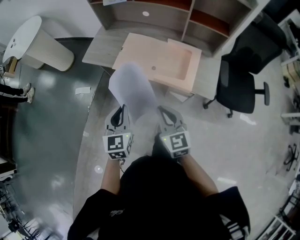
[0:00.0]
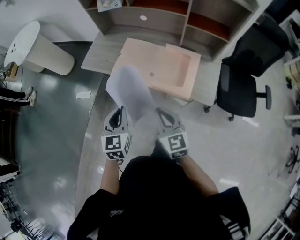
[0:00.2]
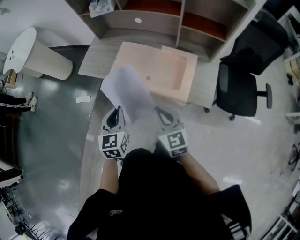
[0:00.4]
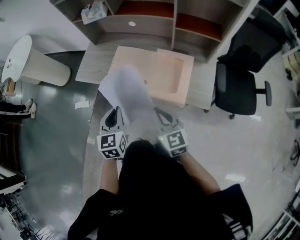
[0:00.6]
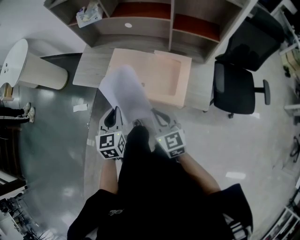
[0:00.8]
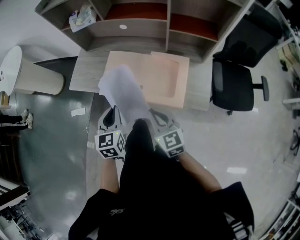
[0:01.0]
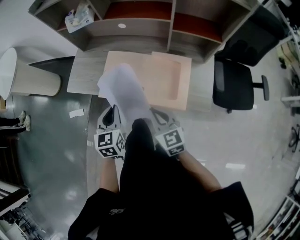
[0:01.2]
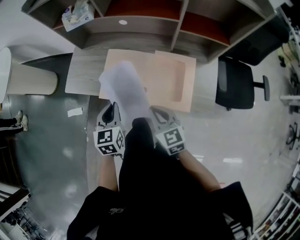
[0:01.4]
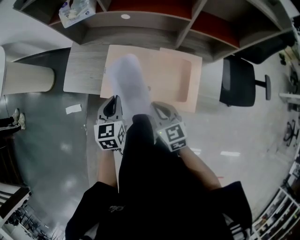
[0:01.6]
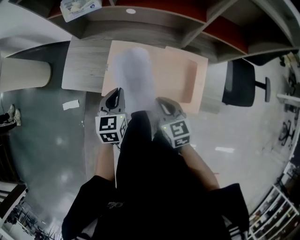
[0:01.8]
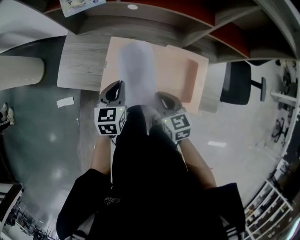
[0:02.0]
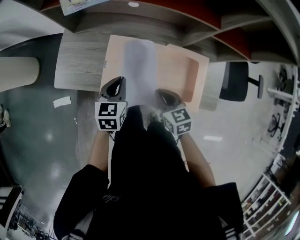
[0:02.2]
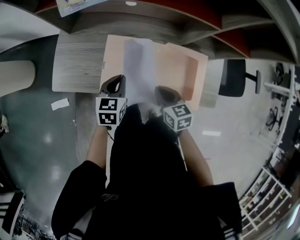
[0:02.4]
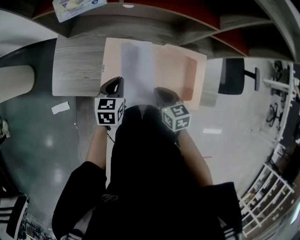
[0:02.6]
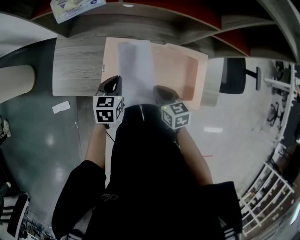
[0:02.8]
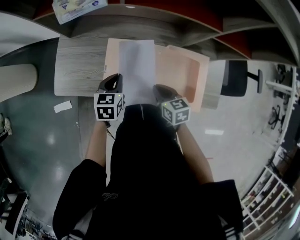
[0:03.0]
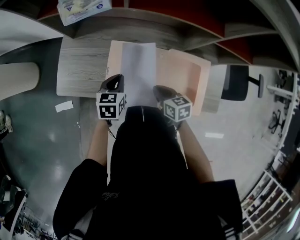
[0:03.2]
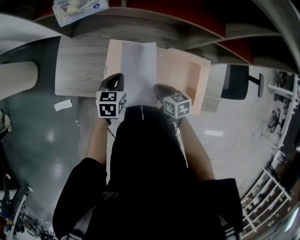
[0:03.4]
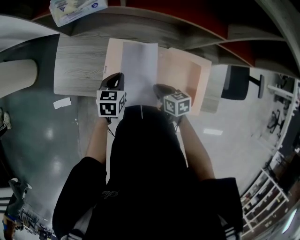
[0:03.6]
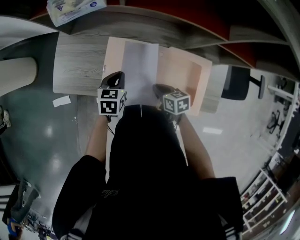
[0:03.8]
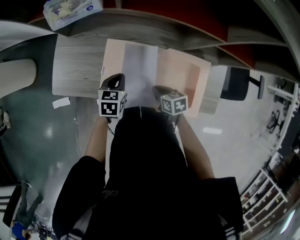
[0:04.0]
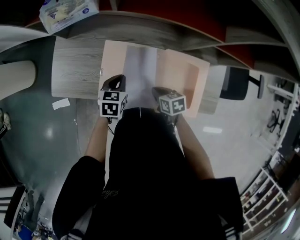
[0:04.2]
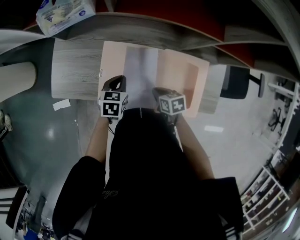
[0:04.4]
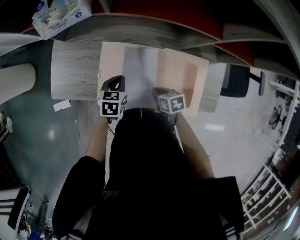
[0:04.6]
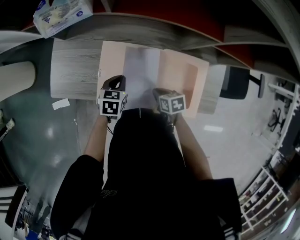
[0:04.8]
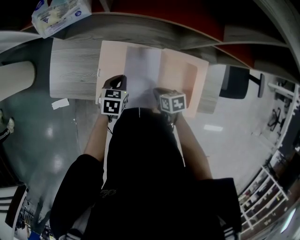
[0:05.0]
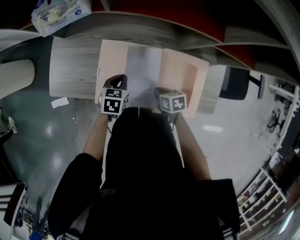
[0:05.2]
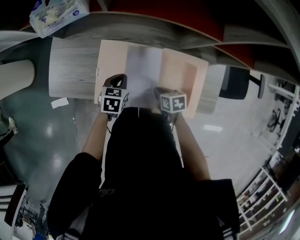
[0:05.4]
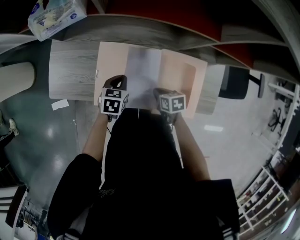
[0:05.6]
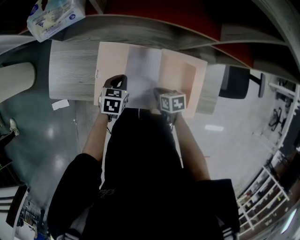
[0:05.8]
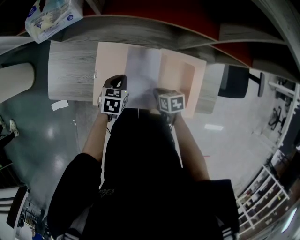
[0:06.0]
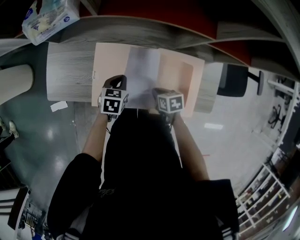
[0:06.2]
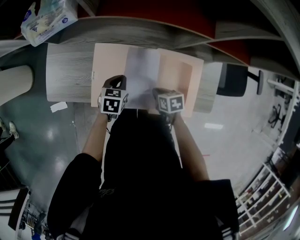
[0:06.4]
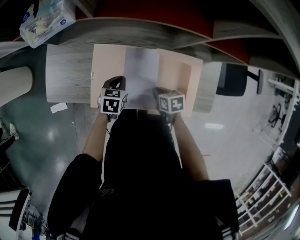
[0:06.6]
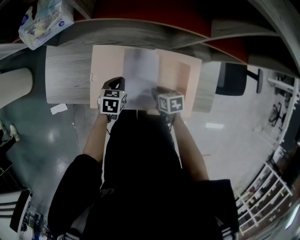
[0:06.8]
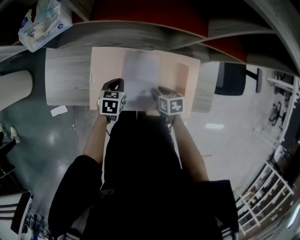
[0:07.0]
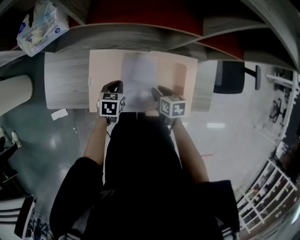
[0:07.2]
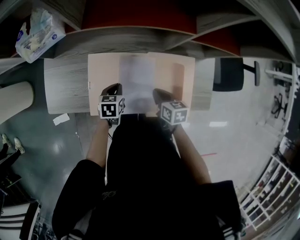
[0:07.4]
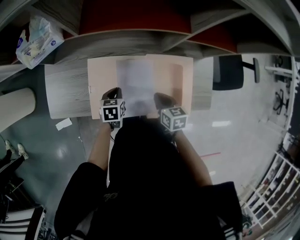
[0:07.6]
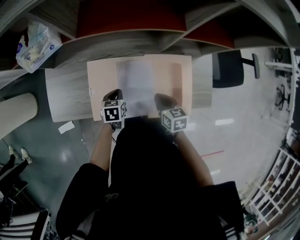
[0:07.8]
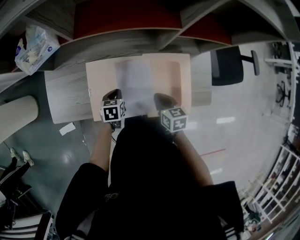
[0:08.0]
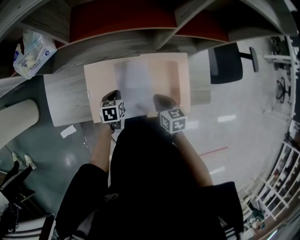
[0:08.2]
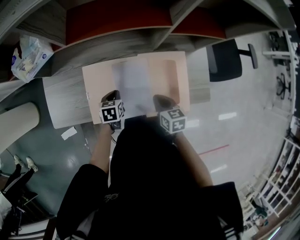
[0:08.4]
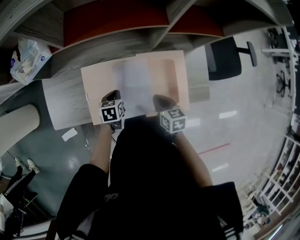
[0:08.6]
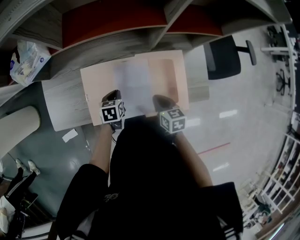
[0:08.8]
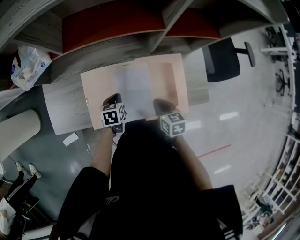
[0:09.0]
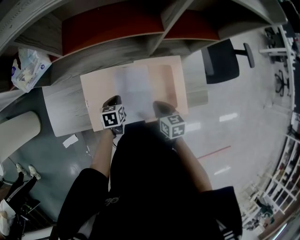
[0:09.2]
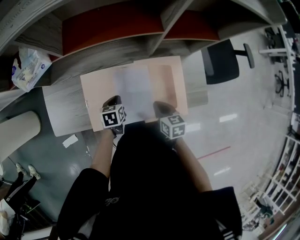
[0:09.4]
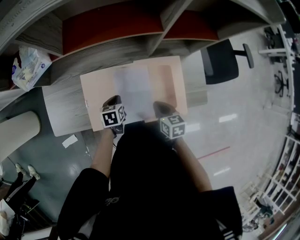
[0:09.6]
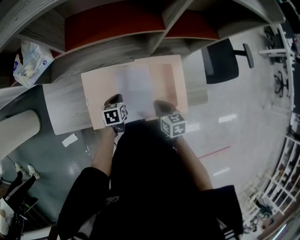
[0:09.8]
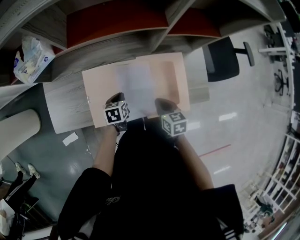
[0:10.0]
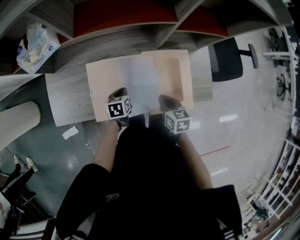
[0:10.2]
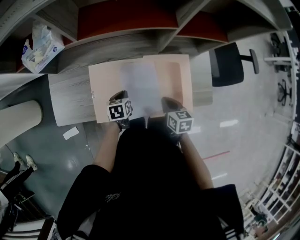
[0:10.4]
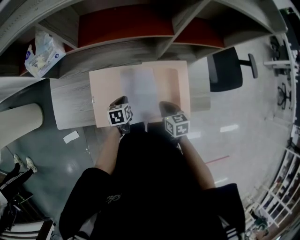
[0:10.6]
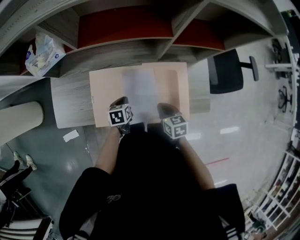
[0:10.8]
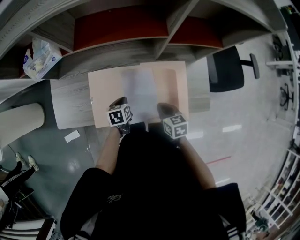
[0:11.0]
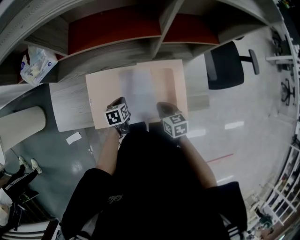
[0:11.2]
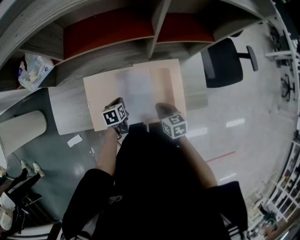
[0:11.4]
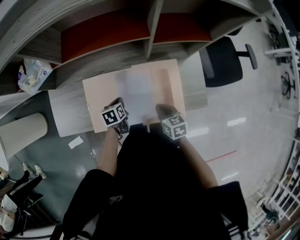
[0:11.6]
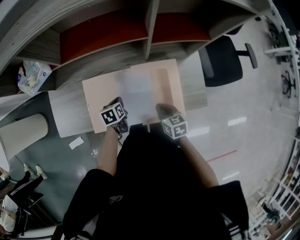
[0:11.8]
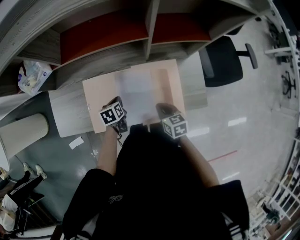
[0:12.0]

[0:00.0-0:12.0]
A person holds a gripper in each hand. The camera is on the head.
0:00.0 to 0:01.6: The grippers both shift forward by approximately 25 cm.
0:01.6 to 0:03.0: The right gripper shifts approximately 15 cm downward and forward, and swivels roughly 20 degrees; the left gripper shifts roughly 15 cm forward and downward.
0:03.0 to 0:04.4: The left gripper shifts by approximately 5 cm. Meanwhile the right gripper is displaced downward by about 10 cm.
0:04.4 to 0:06.0: The grippers make only small movements.
0:06.0 to 0:07.6: The right gripper is displaced upward by some 5 cm, turns by approximately 20 degrees, and opens and closes again.
0:07.6 to 0:10.4: The grippers make only small movements.
0:10.4 to 0:12.0: The grippers make only small movements.

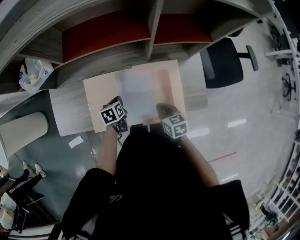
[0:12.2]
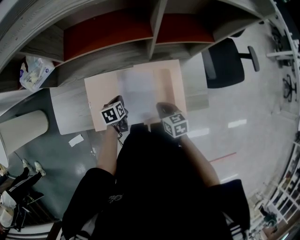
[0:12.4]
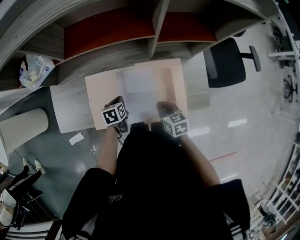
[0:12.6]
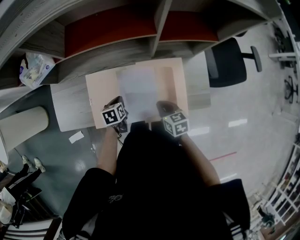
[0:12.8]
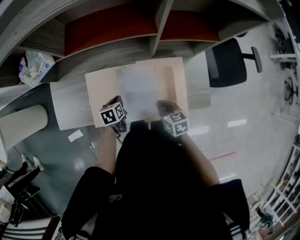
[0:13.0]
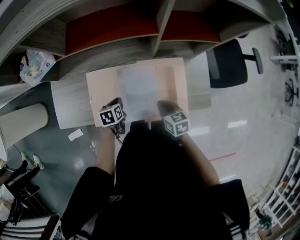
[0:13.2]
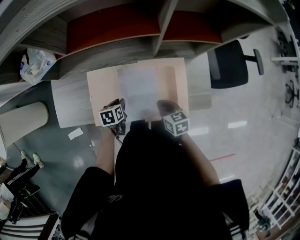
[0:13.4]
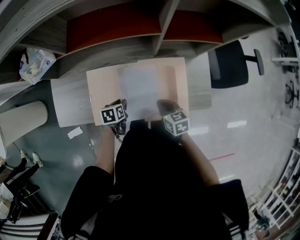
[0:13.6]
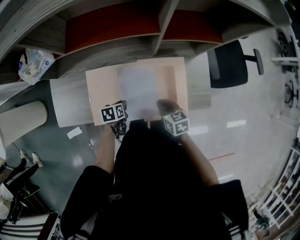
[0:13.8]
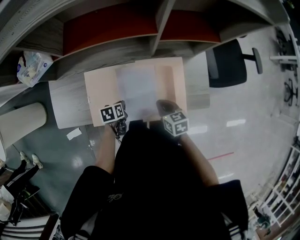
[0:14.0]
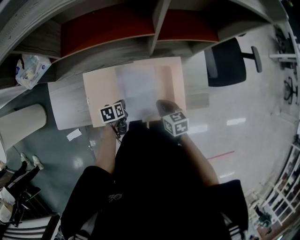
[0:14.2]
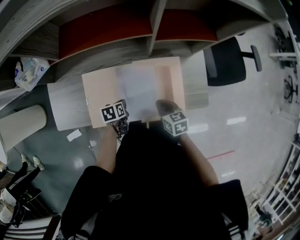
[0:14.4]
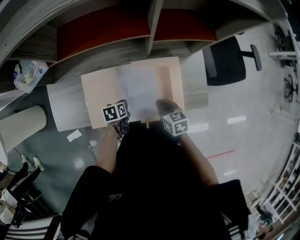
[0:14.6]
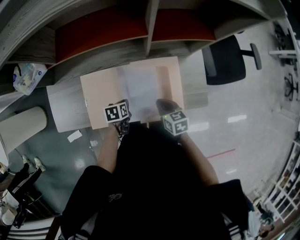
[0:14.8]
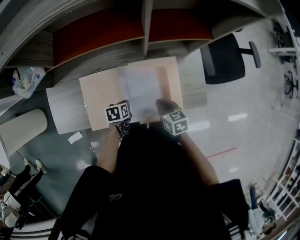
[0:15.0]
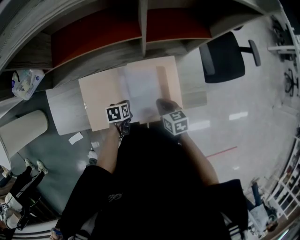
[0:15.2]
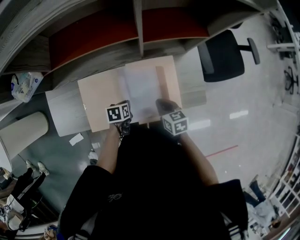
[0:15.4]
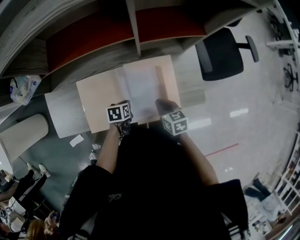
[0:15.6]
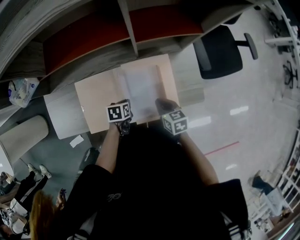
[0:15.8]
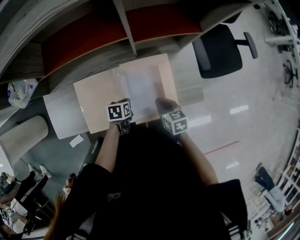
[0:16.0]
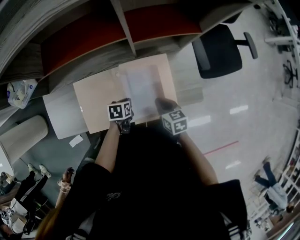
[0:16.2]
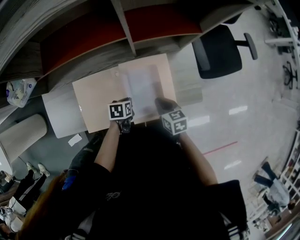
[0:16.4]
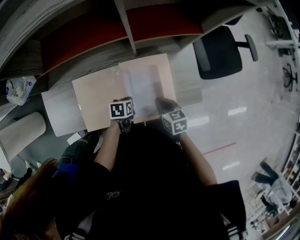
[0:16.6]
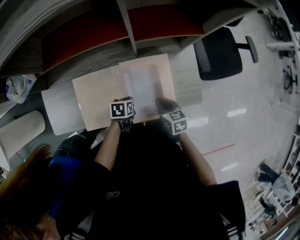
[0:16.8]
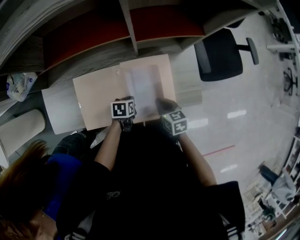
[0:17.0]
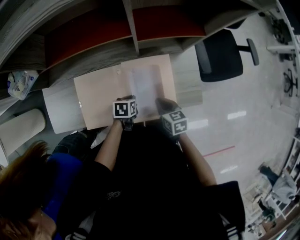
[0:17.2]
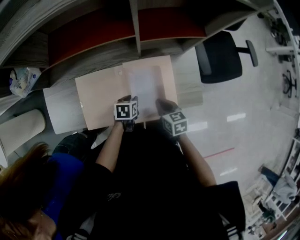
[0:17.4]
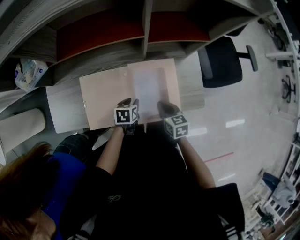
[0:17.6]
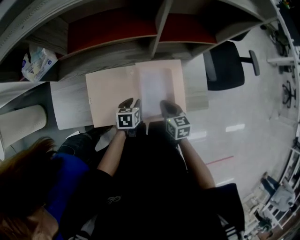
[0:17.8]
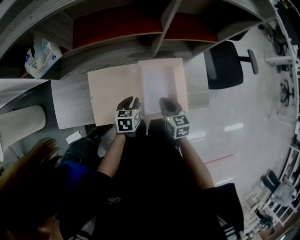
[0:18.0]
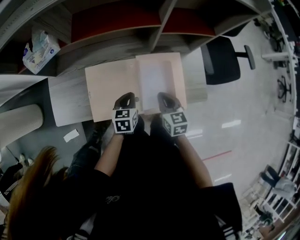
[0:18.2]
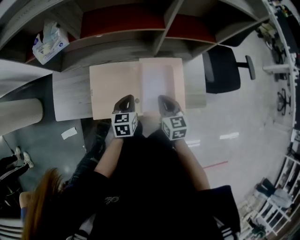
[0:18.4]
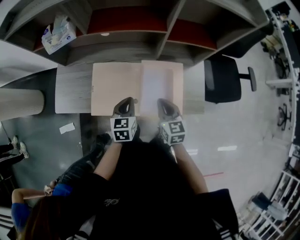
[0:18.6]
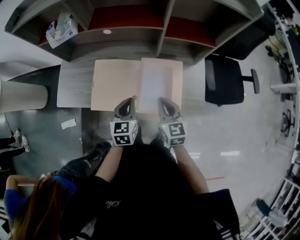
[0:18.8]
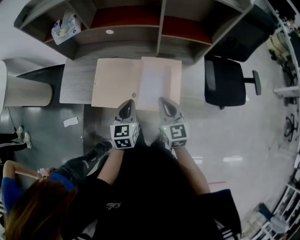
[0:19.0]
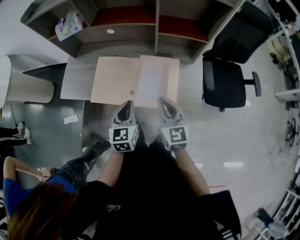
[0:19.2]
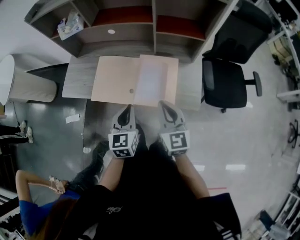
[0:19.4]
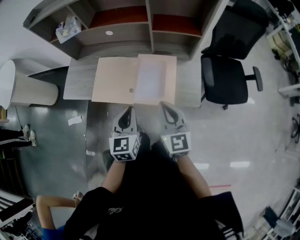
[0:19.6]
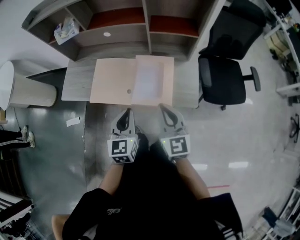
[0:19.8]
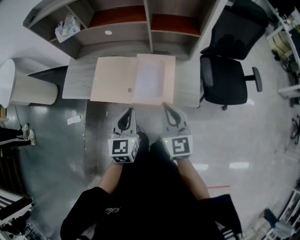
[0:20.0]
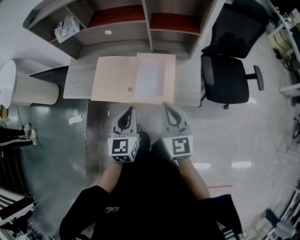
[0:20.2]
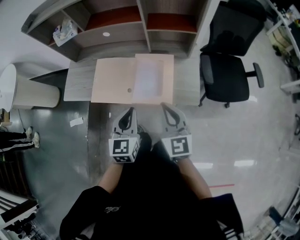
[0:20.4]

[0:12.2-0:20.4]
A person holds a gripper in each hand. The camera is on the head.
0:12.2 to 0:13.8: The left gripper shifts approximately 5 cm backward.
0:13.8 to 0:15.4: The left gripper goes approximately 5 cm to the right.
0:15.4 to 0:17.2: The left gripper shifts about 5 cm to the right.
0:17.2 to 0:18.8: Both grippers move upward, roughly 15 cm. The left gripper points its fingers about 30 degrees further upward, and opens and closes again. Meanwhile the right gripper rotates some 30 degrees.
0:18.8 to 0:20.4: Both grippers travel together backward, upward and to the right, approximately 20 cm.

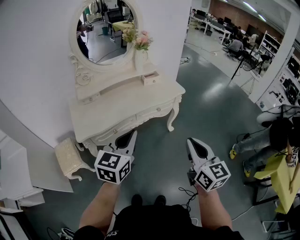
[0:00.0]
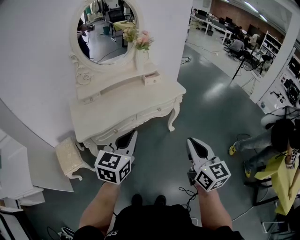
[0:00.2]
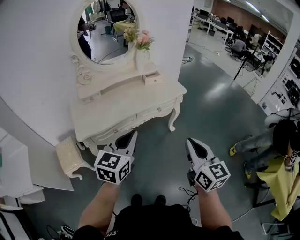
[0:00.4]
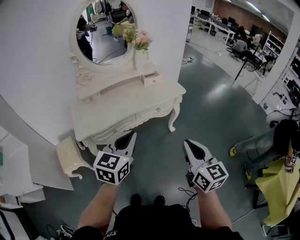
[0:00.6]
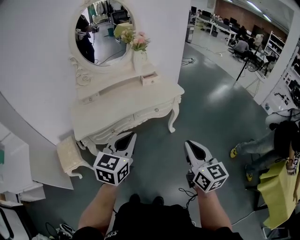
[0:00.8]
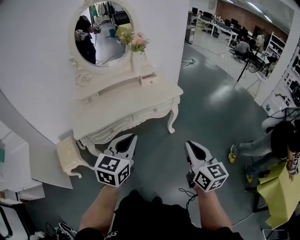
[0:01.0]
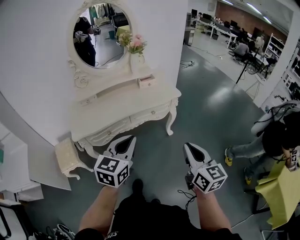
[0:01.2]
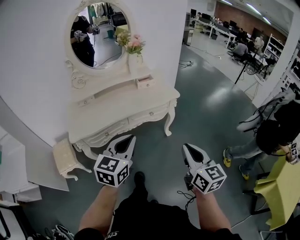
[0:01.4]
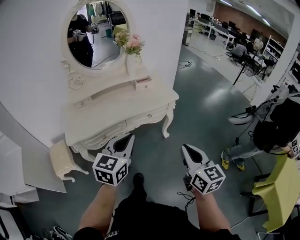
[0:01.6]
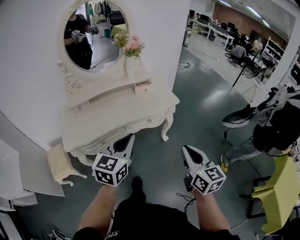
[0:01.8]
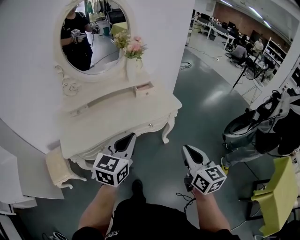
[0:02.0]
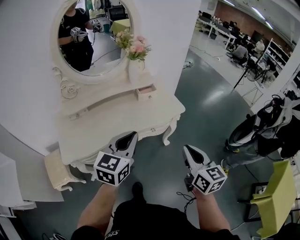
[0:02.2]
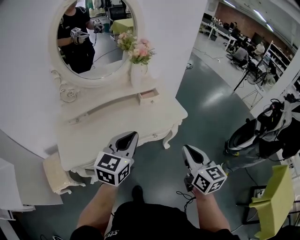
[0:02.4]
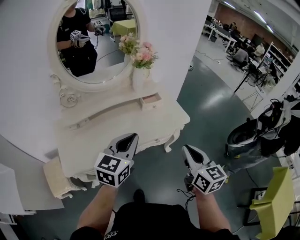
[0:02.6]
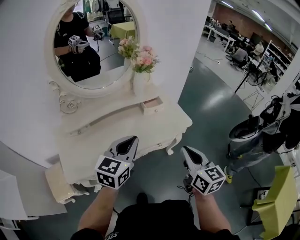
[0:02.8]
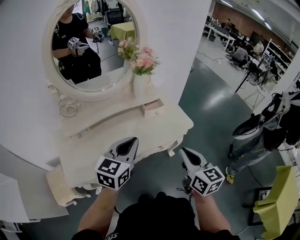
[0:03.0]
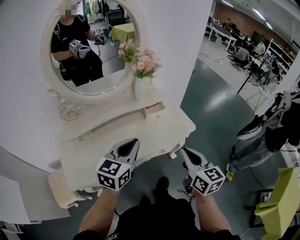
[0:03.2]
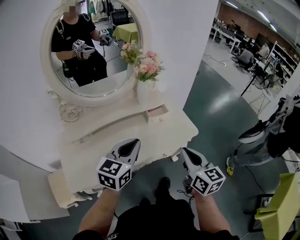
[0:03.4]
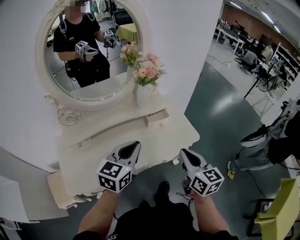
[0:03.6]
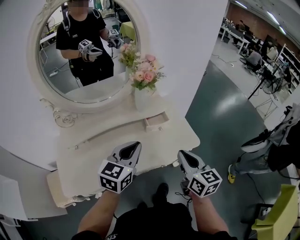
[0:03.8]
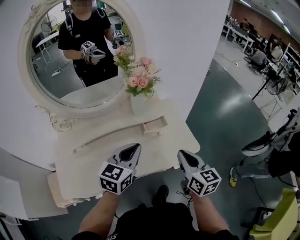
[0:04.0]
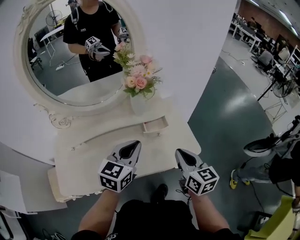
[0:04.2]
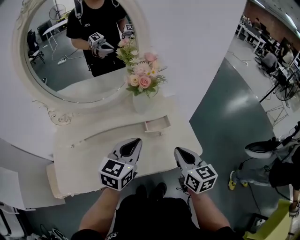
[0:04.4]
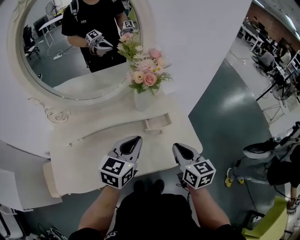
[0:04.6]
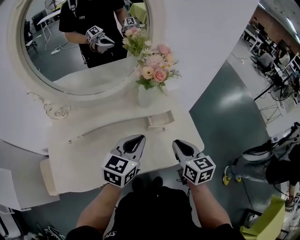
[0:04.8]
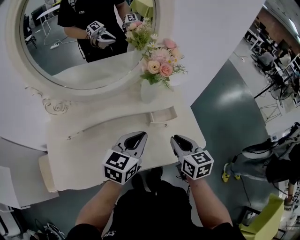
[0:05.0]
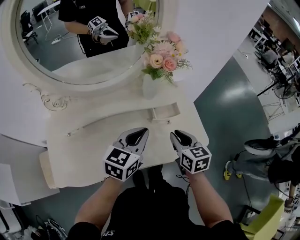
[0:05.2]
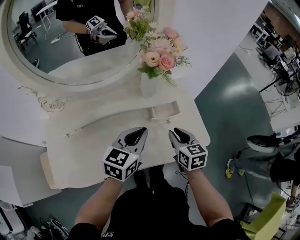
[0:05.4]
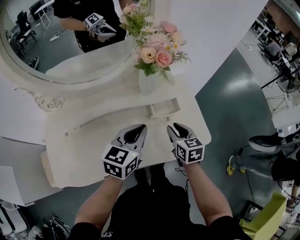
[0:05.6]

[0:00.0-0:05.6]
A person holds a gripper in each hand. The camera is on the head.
0:00.0 to 0:01.4: The grippers both shift to the right by about 10 cm.
0:01.4 to 0:02.8: Both grippers move forward, some 30 cm.
0:02.8 to 0:04.2: The grippers both shift forward by about 20 cm.
0:04.2 to 0:05.6: The left gripper is displaced downward and forward by approximately 10 cm; the right gripper is displaced downward, forward and to the left by roughly 20 cm, and opens its fingers.
